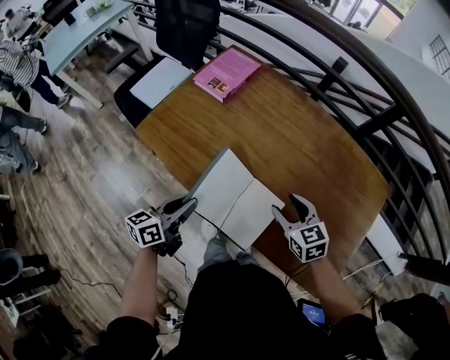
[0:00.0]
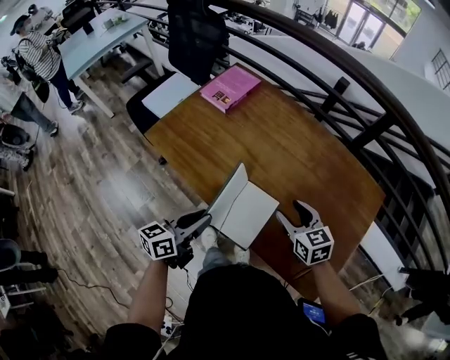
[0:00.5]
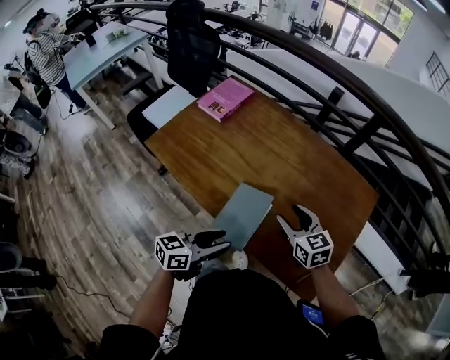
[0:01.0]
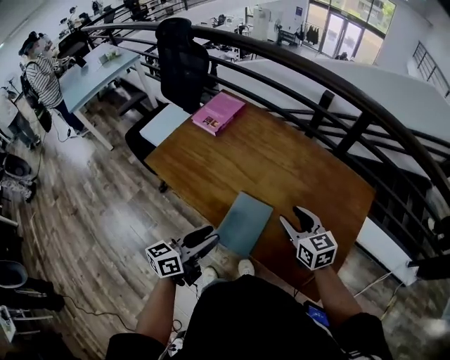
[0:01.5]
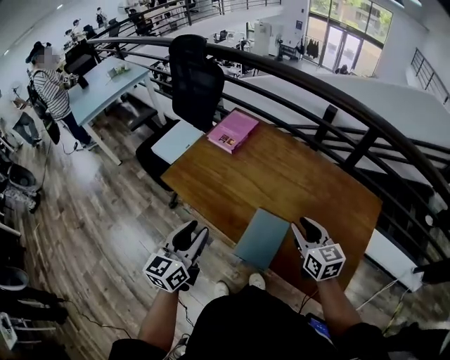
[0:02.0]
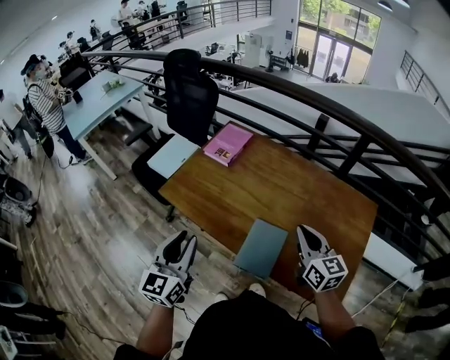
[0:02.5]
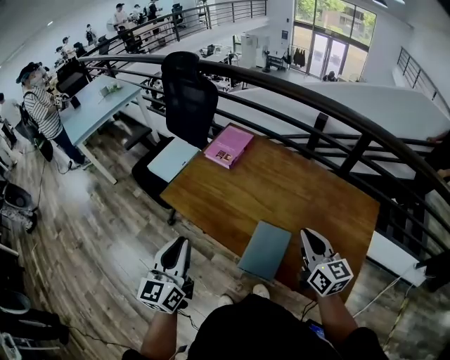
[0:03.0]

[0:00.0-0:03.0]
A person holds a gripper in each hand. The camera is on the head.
0:00.0 to 0:01.5: The left gripper goes roughly 15 cm to the right, upward and backward. The right gripper shifts some 10 cm upward and to the right.
0:01.5 to 0:03.0: The left gripper travels to the left and upward by about 20 cm, changes its angle by roughly 40 degrees, and closes its fingers, while the right gripper is displaced upward by some 10 cm, changes its angle by approximately 20 degrees, and closes up.

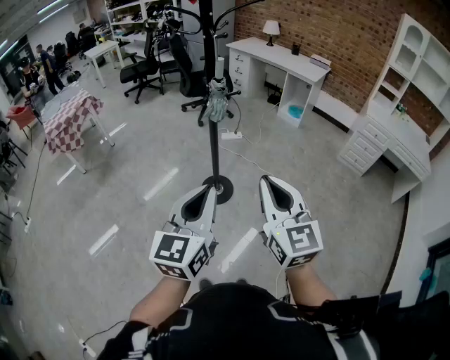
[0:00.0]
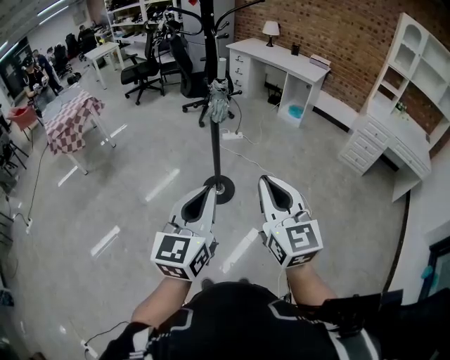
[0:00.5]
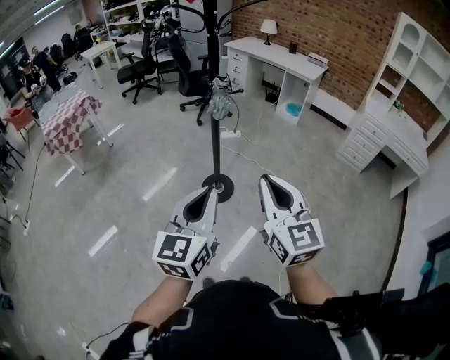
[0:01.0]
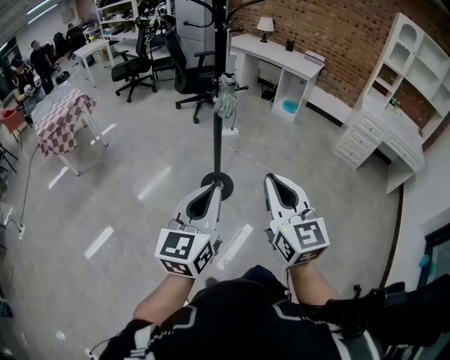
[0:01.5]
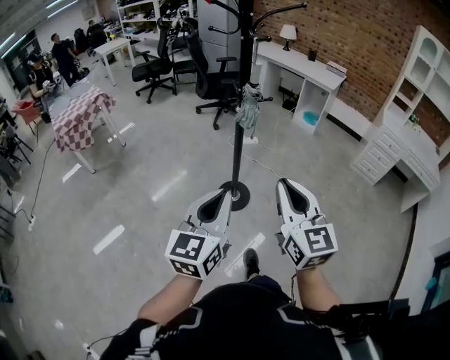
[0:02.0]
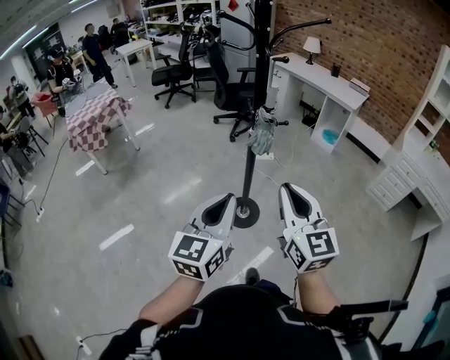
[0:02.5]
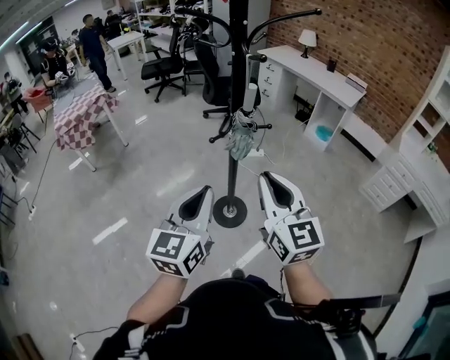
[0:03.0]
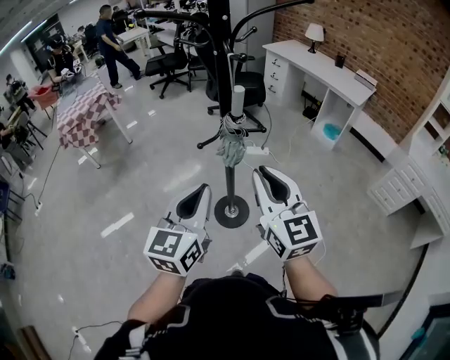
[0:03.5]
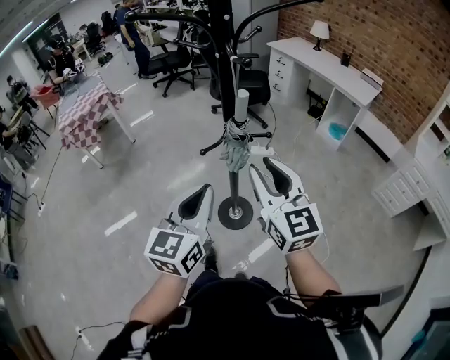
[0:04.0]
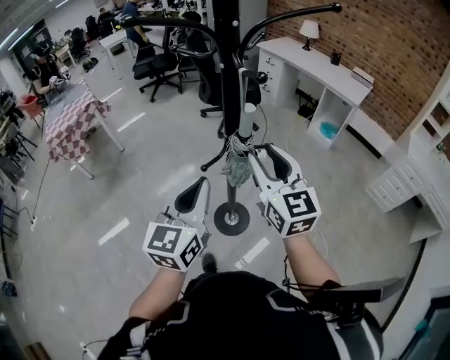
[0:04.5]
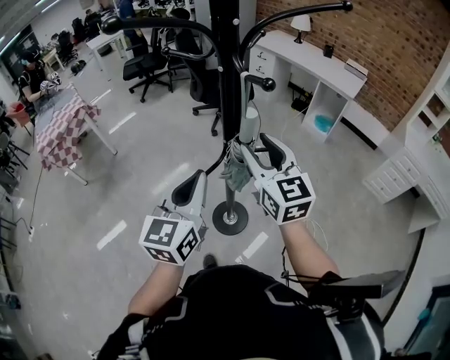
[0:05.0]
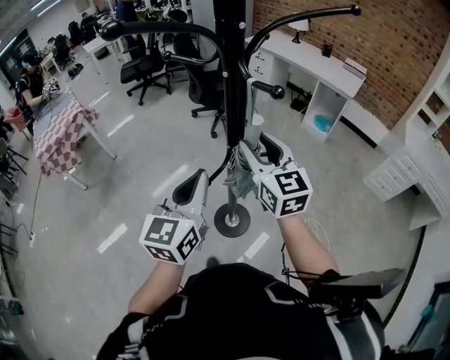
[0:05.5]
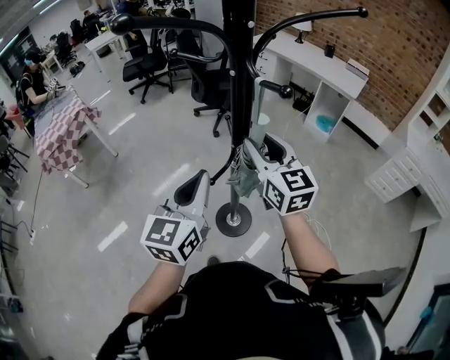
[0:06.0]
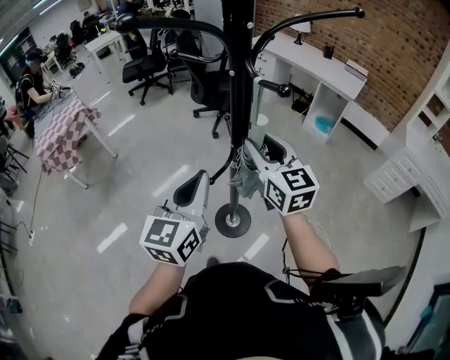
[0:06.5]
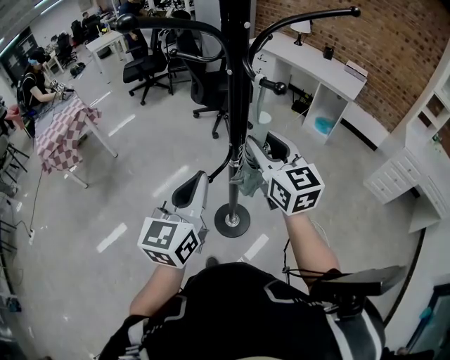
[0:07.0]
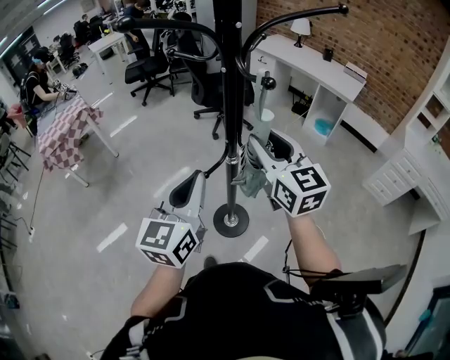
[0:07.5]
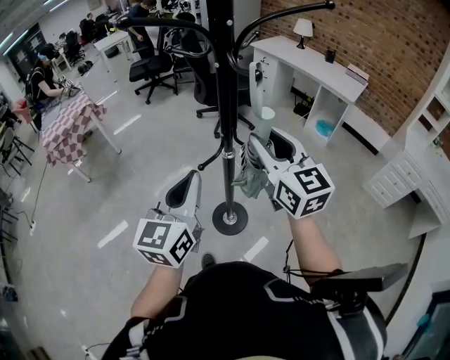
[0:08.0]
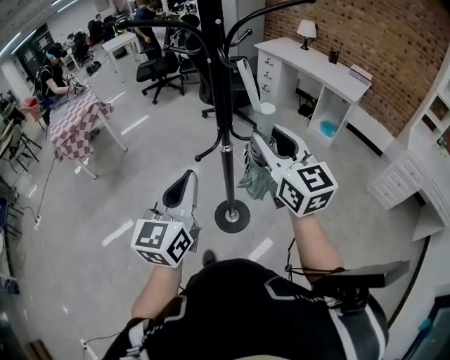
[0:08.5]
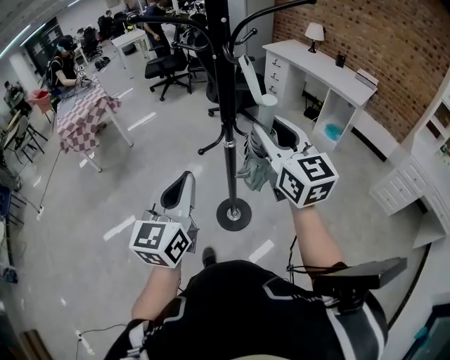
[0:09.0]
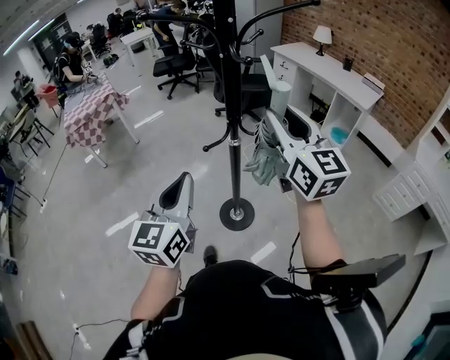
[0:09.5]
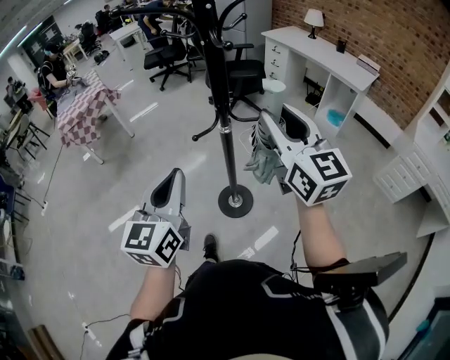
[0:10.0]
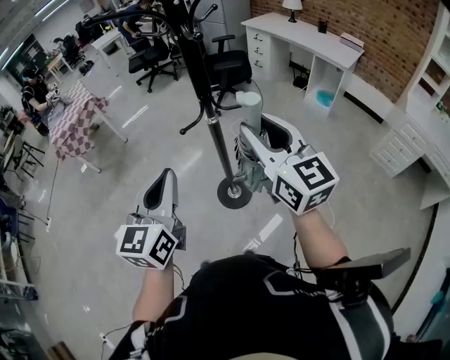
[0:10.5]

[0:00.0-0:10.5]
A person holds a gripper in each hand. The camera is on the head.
0:00.0 to 0:02.0: Both grippers travel together to the left, about 10 cm.
0:02.0 to 0:04.0: Both grippers travel together forward, some 30 cm. The right gripper opens.
0:04.0 to 0:06.5: The left gripper shifts about 15 cm forward and to the left. Meanwhile the right gripper goes some 15 cm forward.
0:06.5 to 0:08.5: The right gripper goes approximately 15 cm backward, to the right and upward. The left gripper shifts approximately 10 cm backward.
0:08.5 to 0:10.5: Both grippers move backward, some 10 cm.

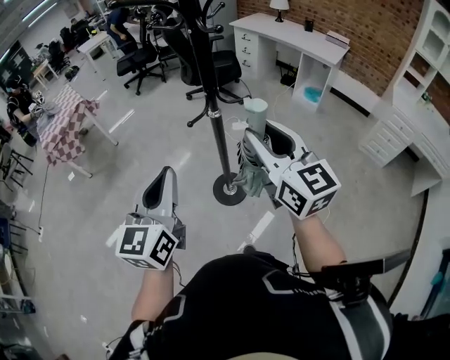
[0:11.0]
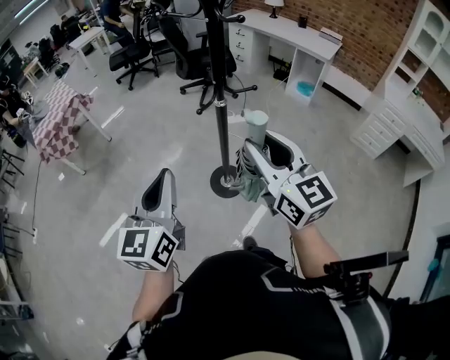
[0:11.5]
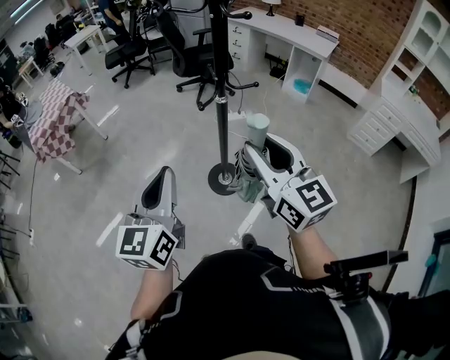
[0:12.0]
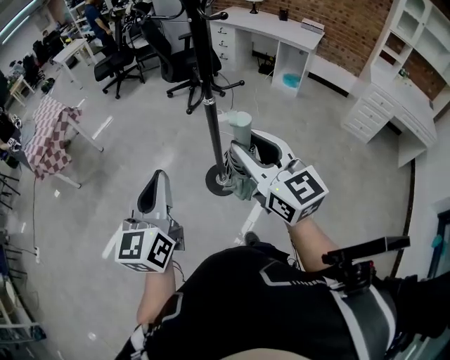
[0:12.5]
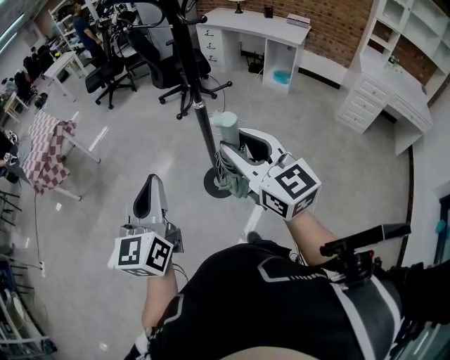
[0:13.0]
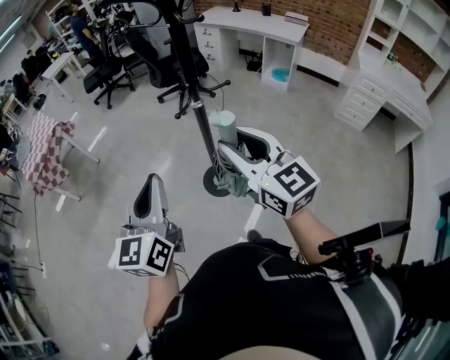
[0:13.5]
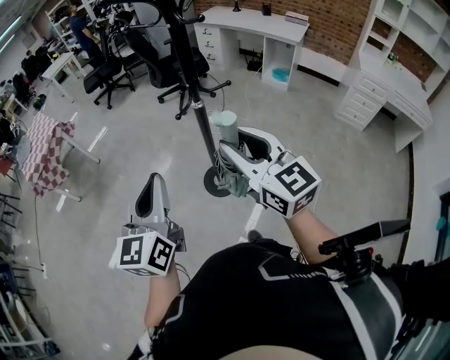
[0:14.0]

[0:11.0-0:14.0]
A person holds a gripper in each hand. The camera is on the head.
0:11.0 to 0:12.5: The right gripper heads to the left and backward, covering roughly 10 cm, while the left gripper heads to the left, covering roughly 5 cm.
0:12.5 to 0:14.0: The two grippers keep their place.

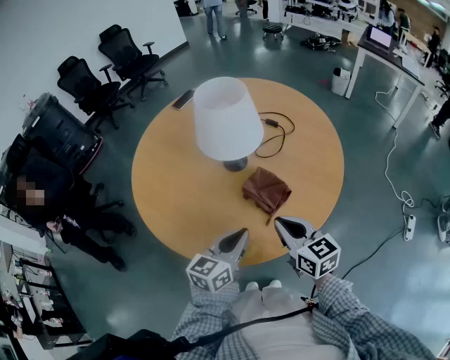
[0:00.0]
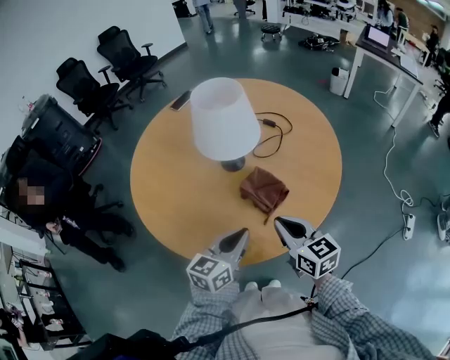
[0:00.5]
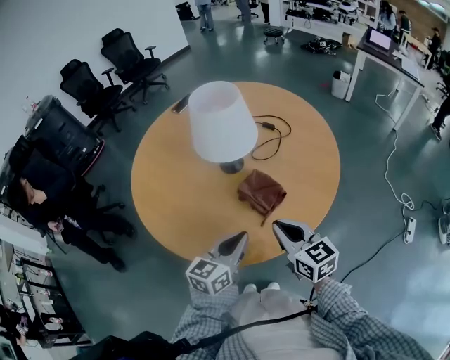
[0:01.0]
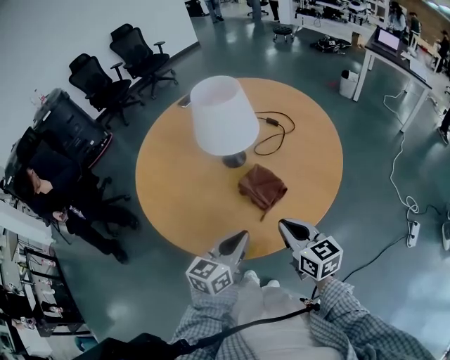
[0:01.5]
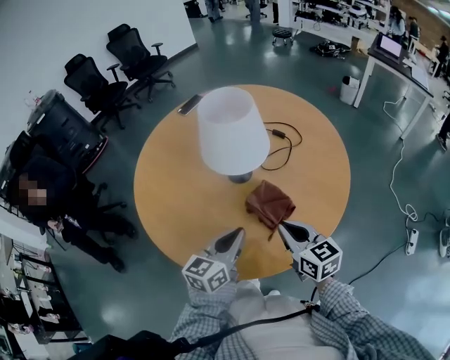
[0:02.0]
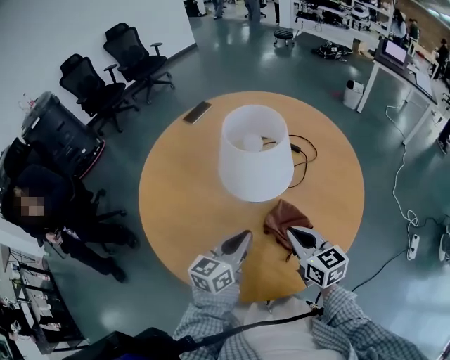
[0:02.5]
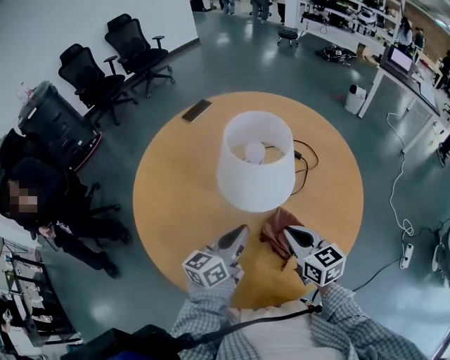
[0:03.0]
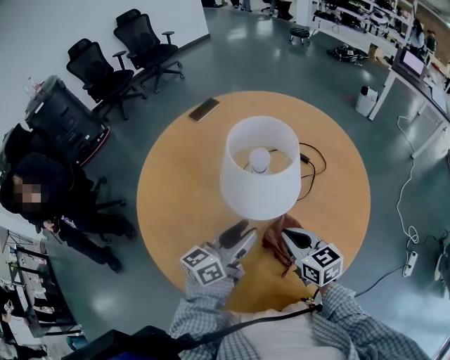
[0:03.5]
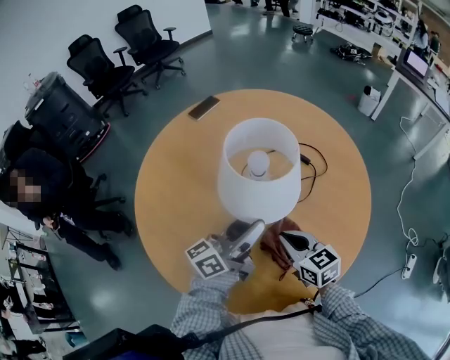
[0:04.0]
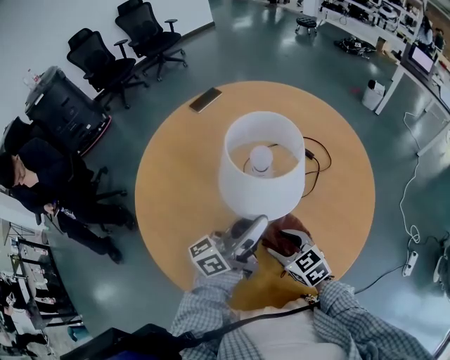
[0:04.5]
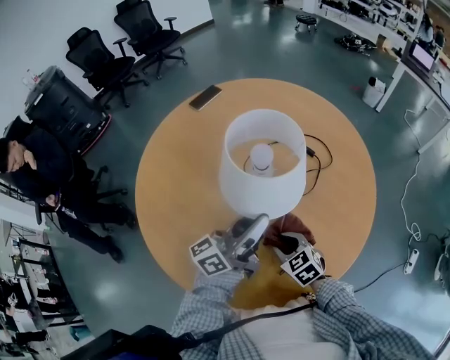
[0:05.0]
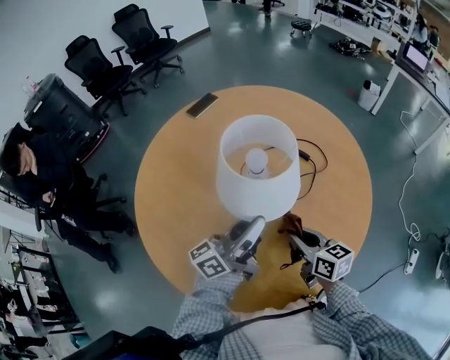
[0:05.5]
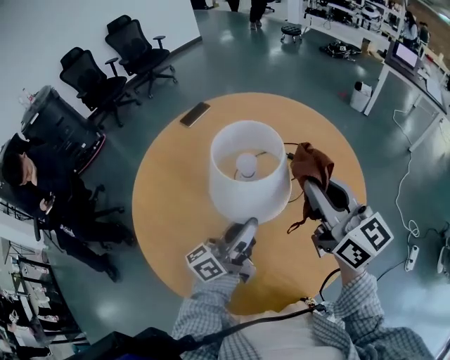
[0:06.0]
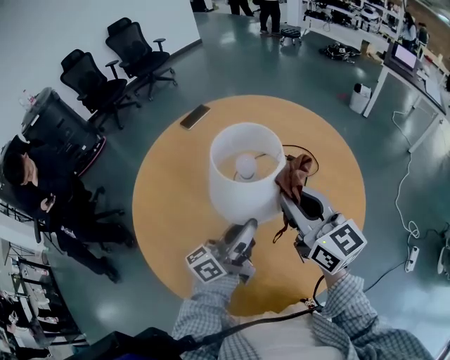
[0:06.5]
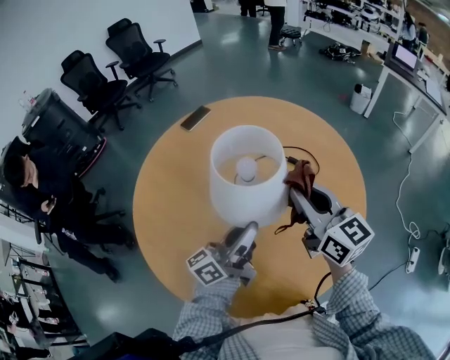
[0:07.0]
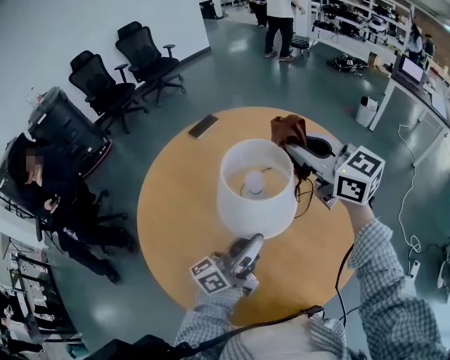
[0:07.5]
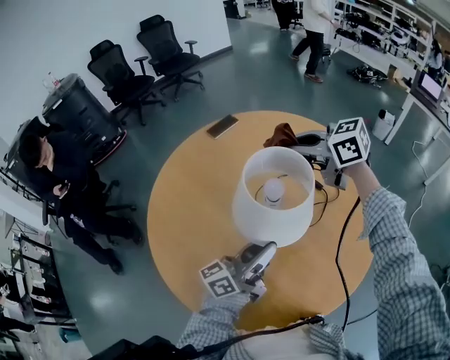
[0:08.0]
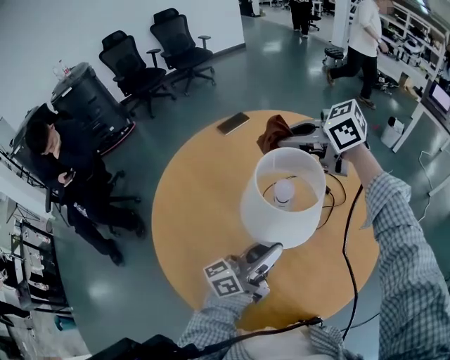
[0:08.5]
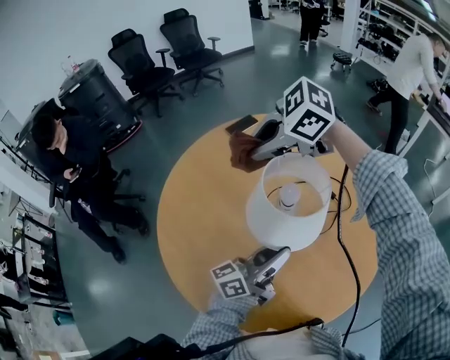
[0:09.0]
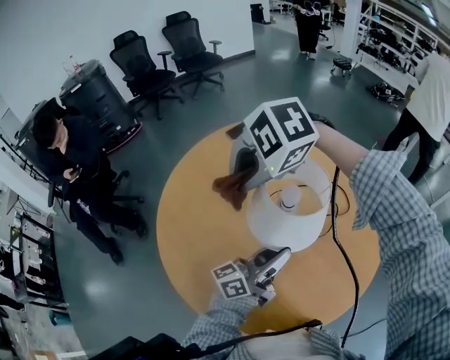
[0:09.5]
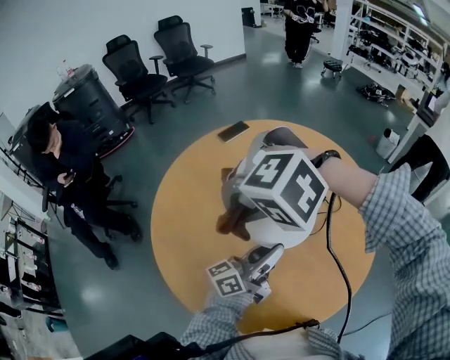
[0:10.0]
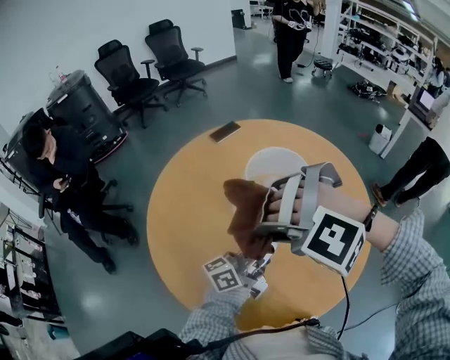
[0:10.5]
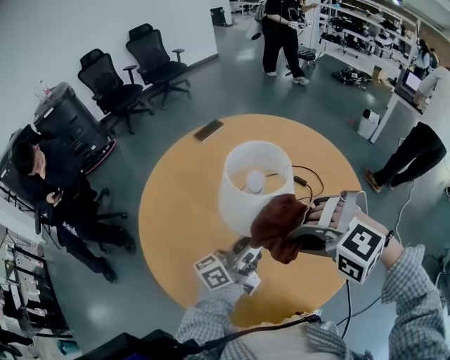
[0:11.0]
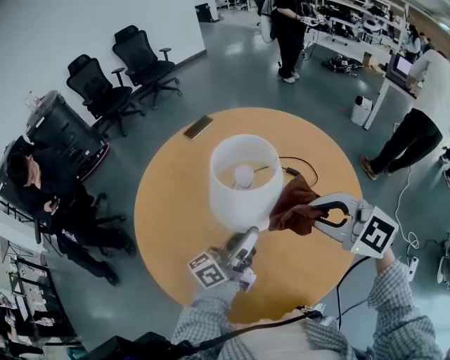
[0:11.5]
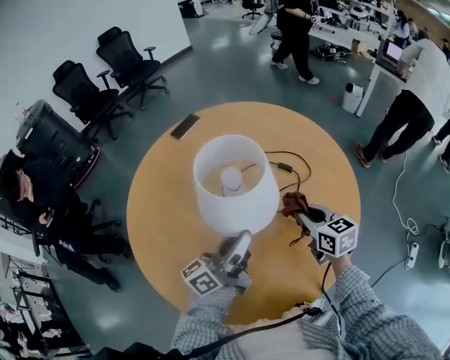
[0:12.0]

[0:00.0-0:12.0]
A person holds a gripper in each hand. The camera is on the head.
0:00.0 to 0:02.0: The grippers move only a little.
0:02.0 to 0:04.0: The right gripper travels forward by some 10 cm; the left gripper travels forward and upward by some 15 cm, swivels about 40 degrees, and opens up.
0:04.0 to 0:06.0: The left gripper closes; the right gripper shifts roughly 25 cm upward, points its fingers some 30 degrees further upward, and opens, then closes again.
0:06.0 to 0:08.0: The right gripper heads forward and to the left, covering approximately 20 cm, and turns by about 50 degrees.
0:08.0 to 0:10.0: The right gripper ends up some 25 cm from where it was, and rolls counterclockwise, seen from behind, by some 80 degrees.
0:10.0 to 0:12.0: The right gripper shifts by approximately 35 cm, and rotates around the line of its fingers by about 120 degrees, clockwise from behind.
